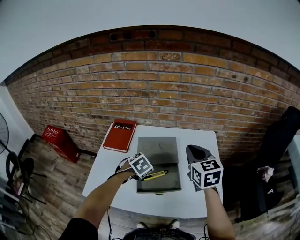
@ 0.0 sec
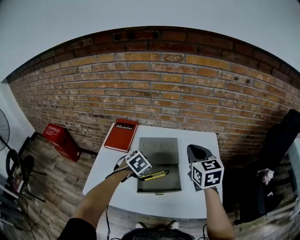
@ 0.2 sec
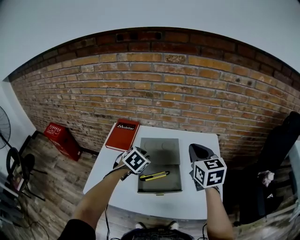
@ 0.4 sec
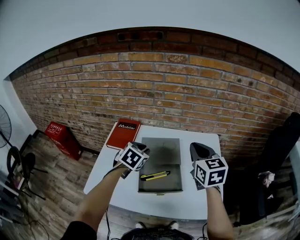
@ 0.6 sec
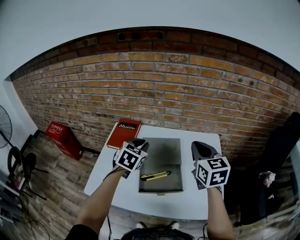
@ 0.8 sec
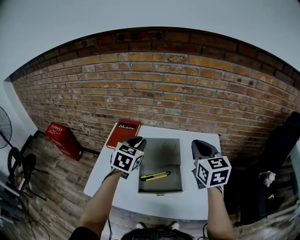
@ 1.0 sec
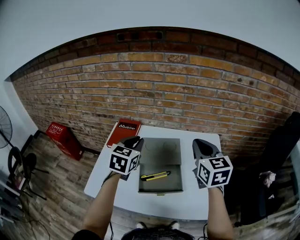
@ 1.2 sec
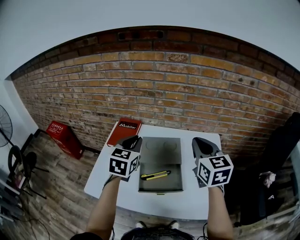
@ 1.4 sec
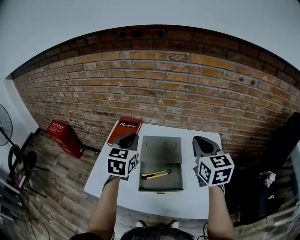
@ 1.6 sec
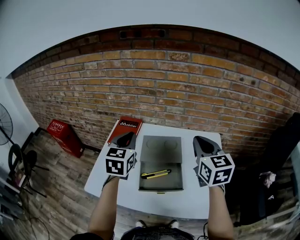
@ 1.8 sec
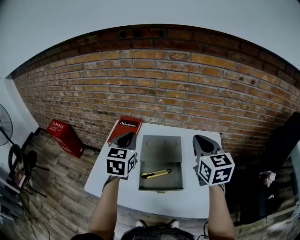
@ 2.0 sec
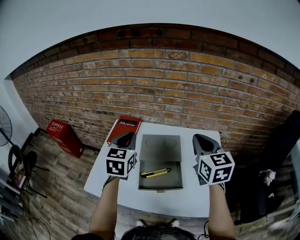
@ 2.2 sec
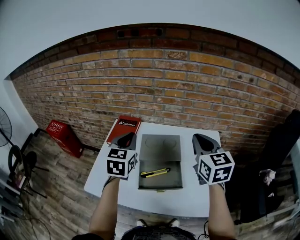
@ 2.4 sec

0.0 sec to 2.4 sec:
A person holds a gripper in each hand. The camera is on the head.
0.0 sec to 1.2 sec: The left gripper heads upward, covering about 20 cm, and tilts its fingers approximately 40 degrees upward.
1.2 sec to 2.4 sec: The grippers make only small movements.

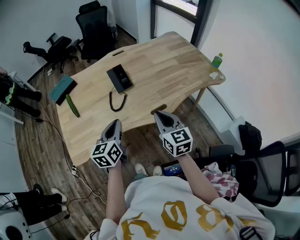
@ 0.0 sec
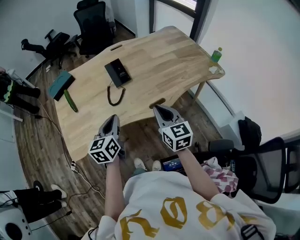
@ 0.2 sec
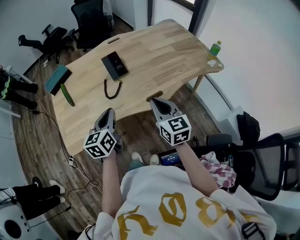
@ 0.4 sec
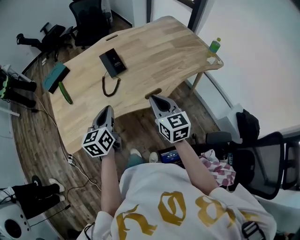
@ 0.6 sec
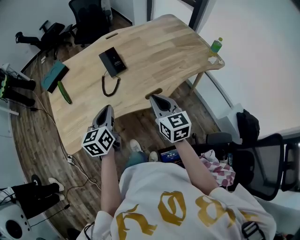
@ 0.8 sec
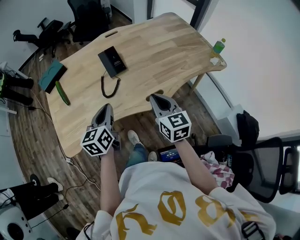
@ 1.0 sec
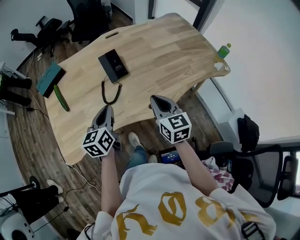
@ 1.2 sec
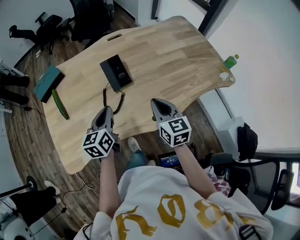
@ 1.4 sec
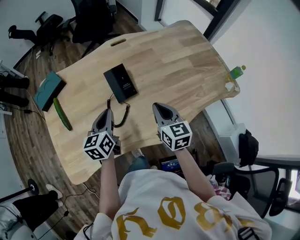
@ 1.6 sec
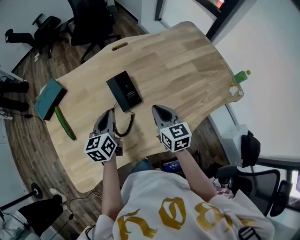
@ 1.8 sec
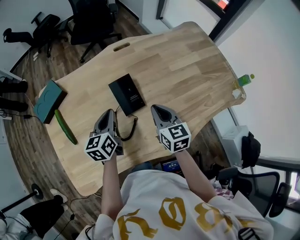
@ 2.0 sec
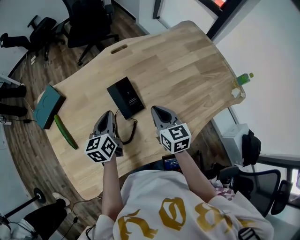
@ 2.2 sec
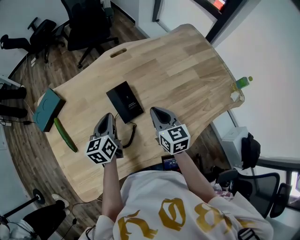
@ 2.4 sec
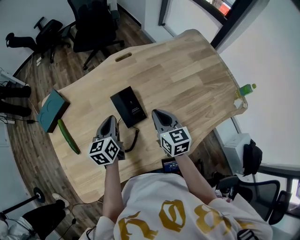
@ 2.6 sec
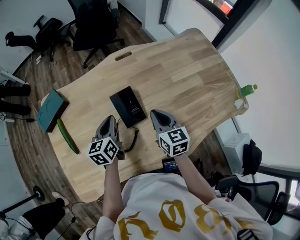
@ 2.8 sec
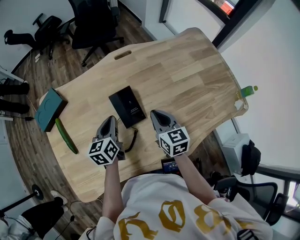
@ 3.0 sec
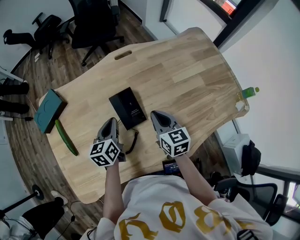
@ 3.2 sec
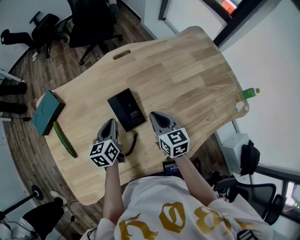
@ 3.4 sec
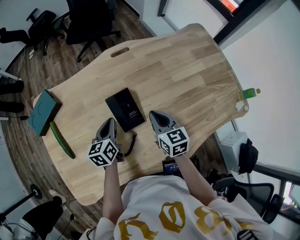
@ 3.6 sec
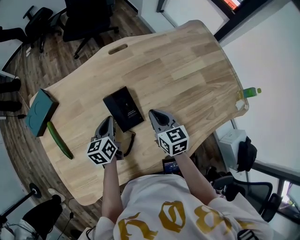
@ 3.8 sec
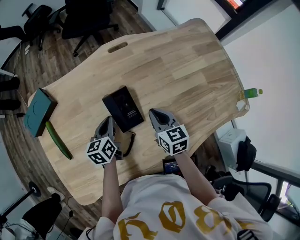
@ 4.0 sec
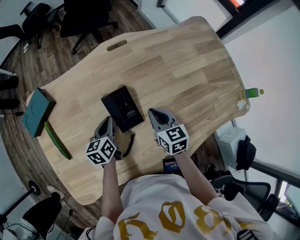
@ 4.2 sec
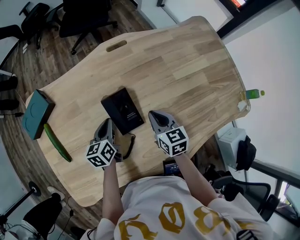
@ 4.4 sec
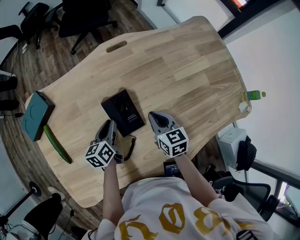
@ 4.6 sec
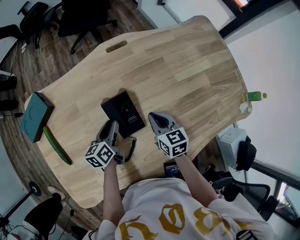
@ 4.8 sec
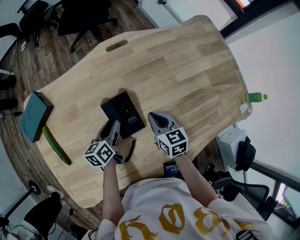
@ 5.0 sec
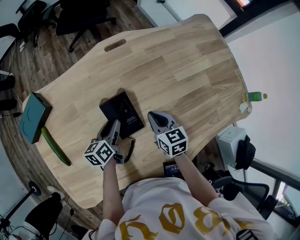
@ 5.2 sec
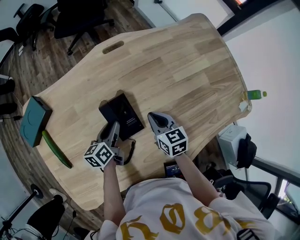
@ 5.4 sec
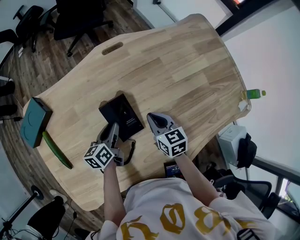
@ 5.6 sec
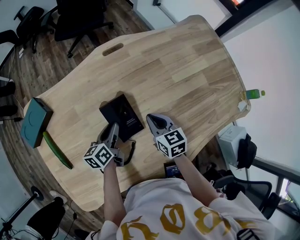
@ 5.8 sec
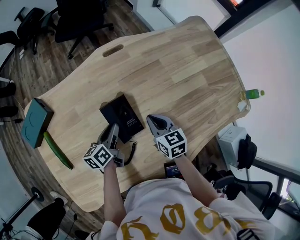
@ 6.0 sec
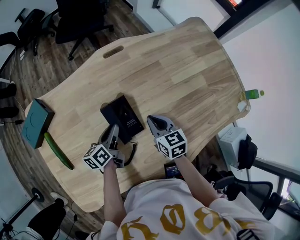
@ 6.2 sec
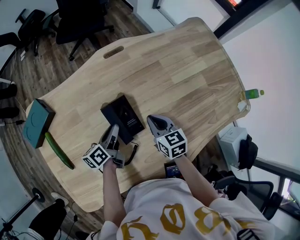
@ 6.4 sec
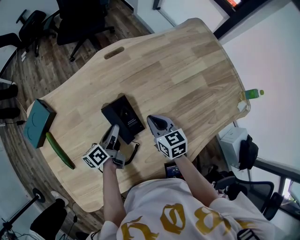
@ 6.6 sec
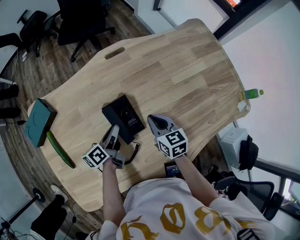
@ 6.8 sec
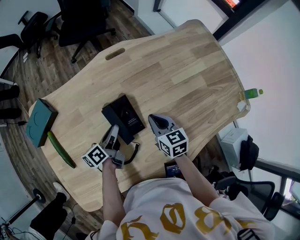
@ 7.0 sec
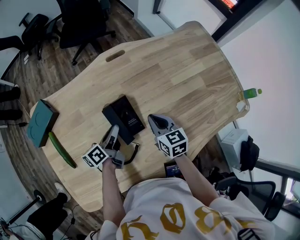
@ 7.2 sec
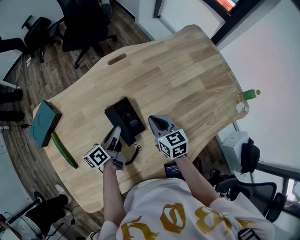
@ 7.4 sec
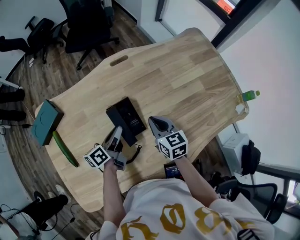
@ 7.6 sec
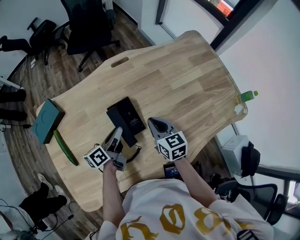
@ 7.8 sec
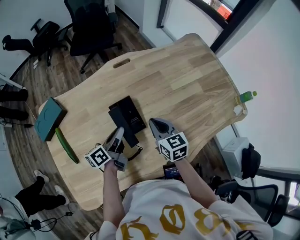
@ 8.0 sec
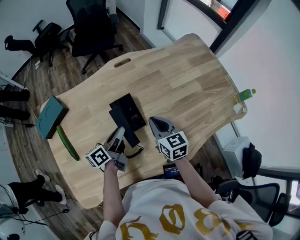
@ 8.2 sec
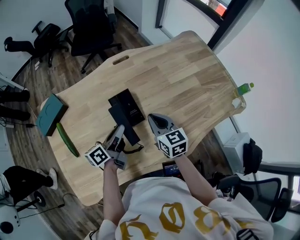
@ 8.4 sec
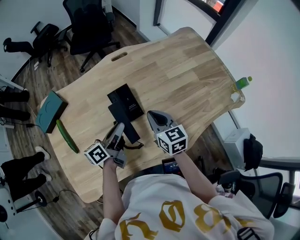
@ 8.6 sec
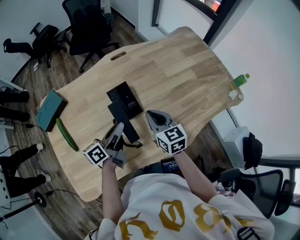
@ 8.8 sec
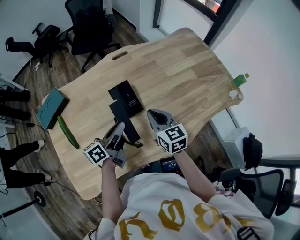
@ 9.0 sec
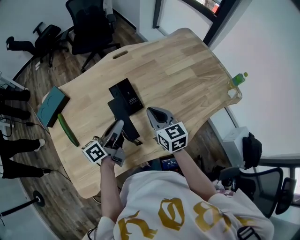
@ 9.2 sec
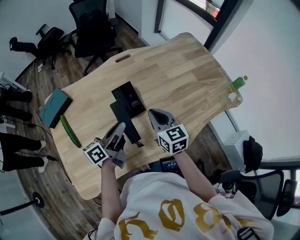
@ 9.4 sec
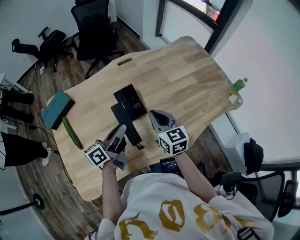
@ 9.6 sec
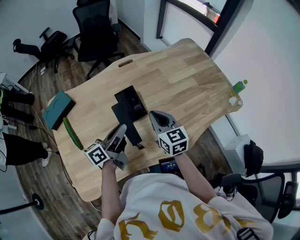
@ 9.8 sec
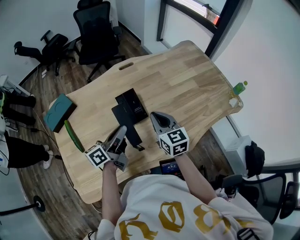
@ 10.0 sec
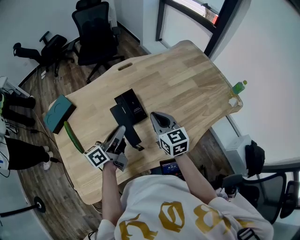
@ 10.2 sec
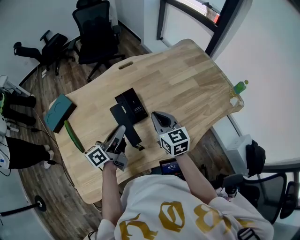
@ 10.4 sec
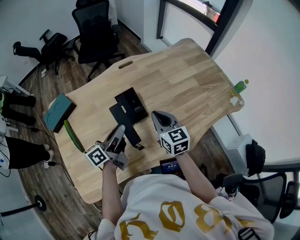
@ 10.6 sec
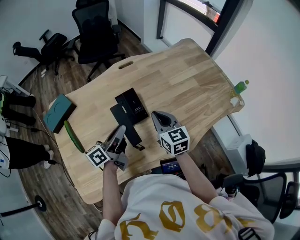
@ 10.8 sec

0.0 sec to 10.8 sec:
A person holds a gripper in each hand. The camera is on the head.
0.0 sec to 1.6 sec: The grippers both shift forward by some 20 cm.
1.6 sec to 3.0 sec: The grippers both shift forward by approximately 10 cm.
3.0 sec to 4.6 sec: Both grippers travel together downward, approximately 10 cm.
4.6 sec to 6.2 sec: The grippers move only a little.
6.2 sec to 7.8 sec: Both grippers move upward, approximately 5 cm.
7.8 sec to 9.2 sec: Both grippers travel together backward and upward, roughly 10 cm.
9.2 sec to 10.8 sec: The grippers make only small movements.

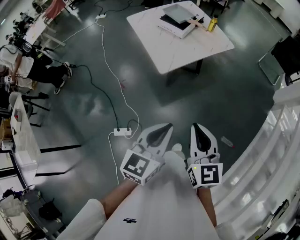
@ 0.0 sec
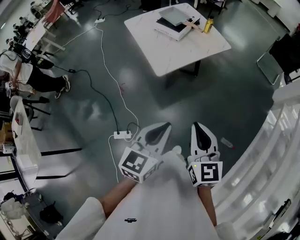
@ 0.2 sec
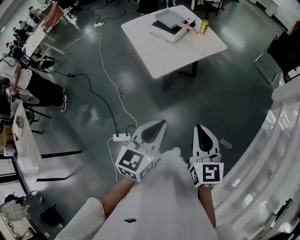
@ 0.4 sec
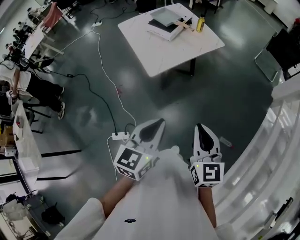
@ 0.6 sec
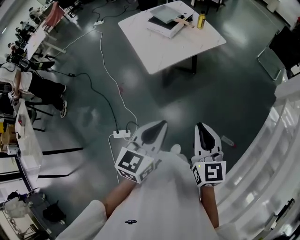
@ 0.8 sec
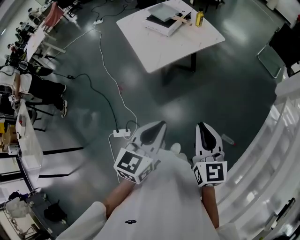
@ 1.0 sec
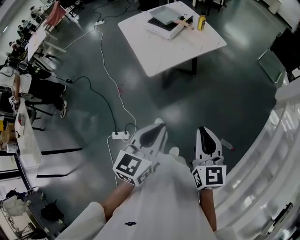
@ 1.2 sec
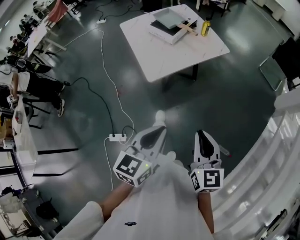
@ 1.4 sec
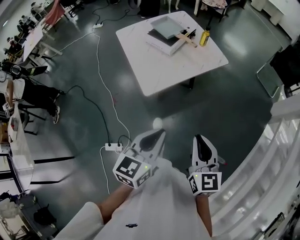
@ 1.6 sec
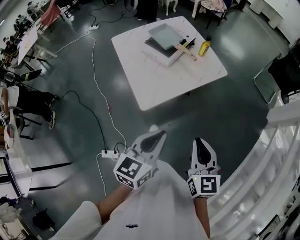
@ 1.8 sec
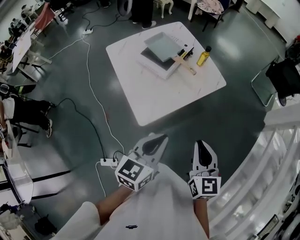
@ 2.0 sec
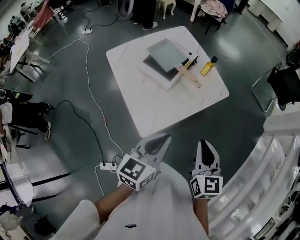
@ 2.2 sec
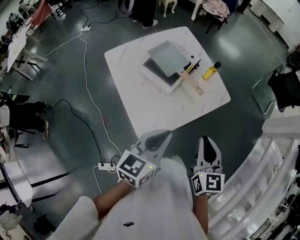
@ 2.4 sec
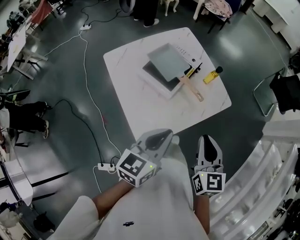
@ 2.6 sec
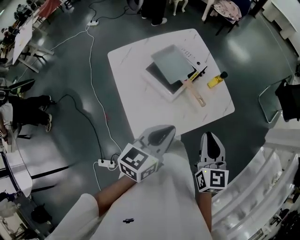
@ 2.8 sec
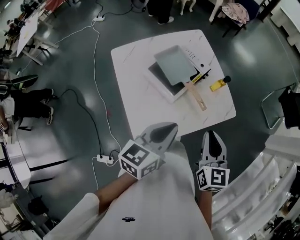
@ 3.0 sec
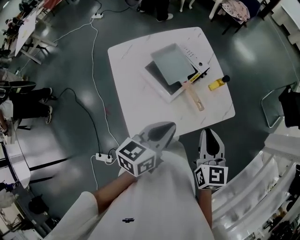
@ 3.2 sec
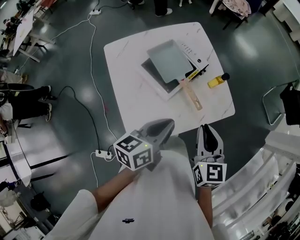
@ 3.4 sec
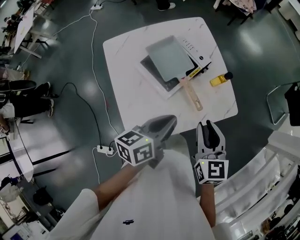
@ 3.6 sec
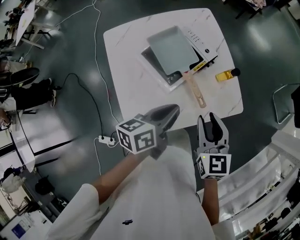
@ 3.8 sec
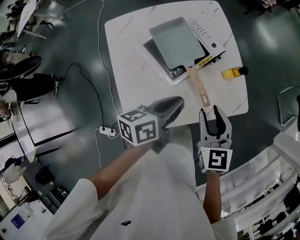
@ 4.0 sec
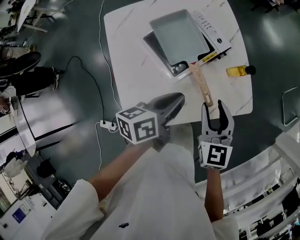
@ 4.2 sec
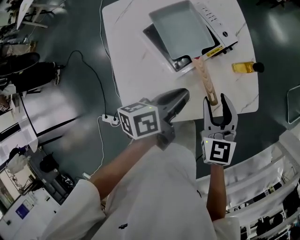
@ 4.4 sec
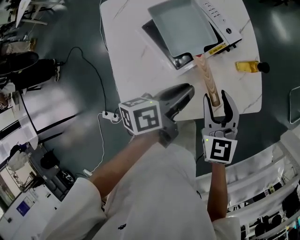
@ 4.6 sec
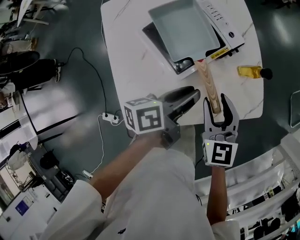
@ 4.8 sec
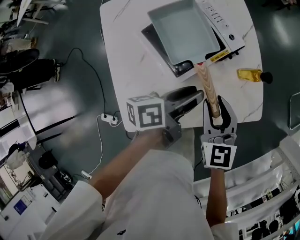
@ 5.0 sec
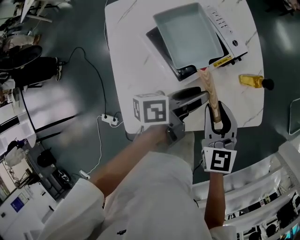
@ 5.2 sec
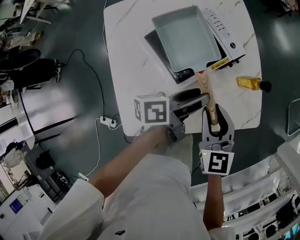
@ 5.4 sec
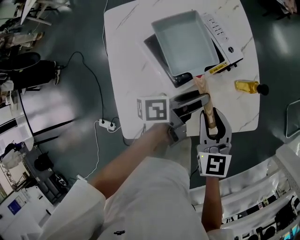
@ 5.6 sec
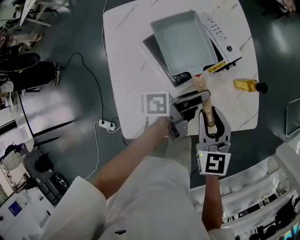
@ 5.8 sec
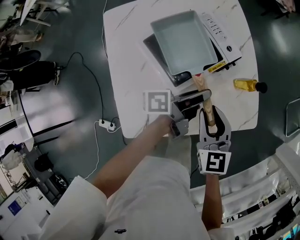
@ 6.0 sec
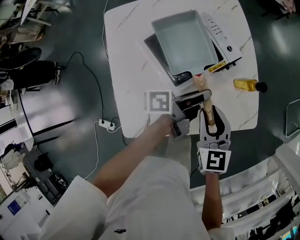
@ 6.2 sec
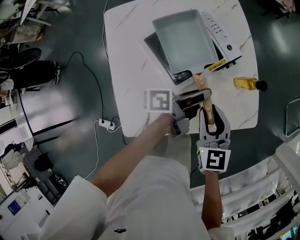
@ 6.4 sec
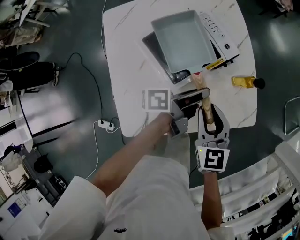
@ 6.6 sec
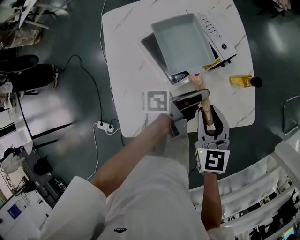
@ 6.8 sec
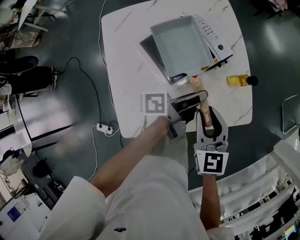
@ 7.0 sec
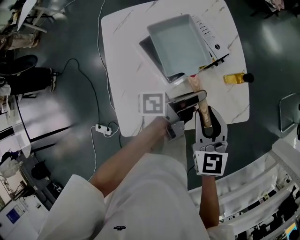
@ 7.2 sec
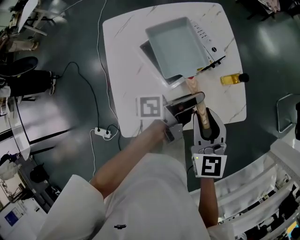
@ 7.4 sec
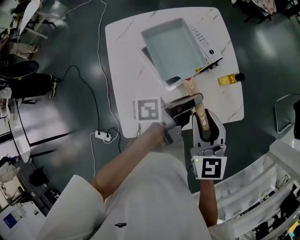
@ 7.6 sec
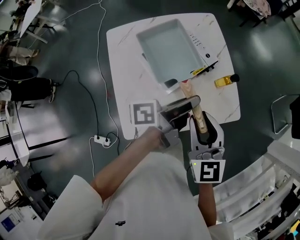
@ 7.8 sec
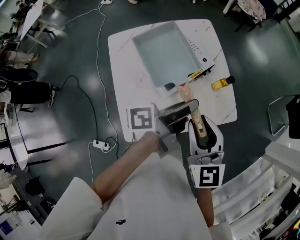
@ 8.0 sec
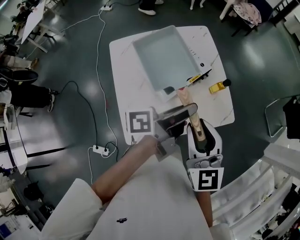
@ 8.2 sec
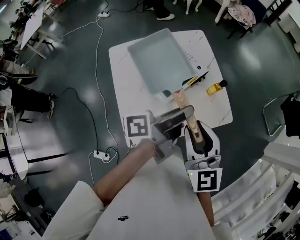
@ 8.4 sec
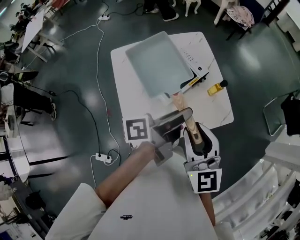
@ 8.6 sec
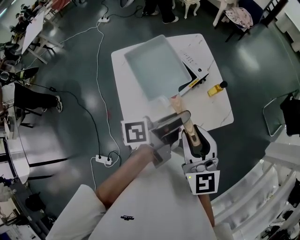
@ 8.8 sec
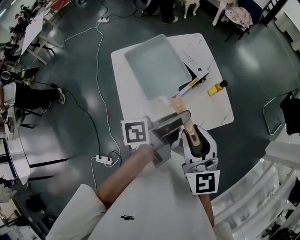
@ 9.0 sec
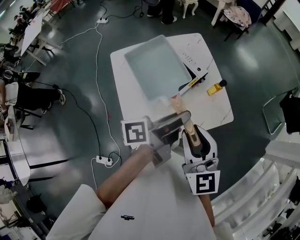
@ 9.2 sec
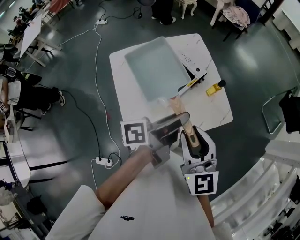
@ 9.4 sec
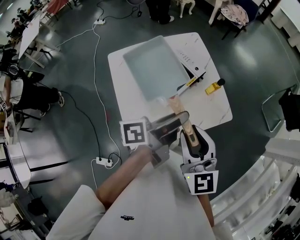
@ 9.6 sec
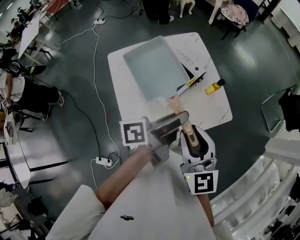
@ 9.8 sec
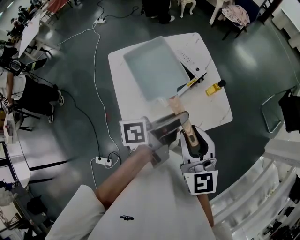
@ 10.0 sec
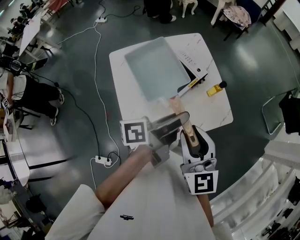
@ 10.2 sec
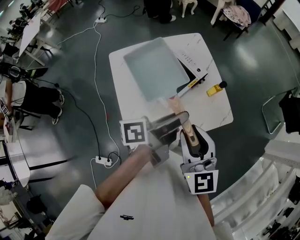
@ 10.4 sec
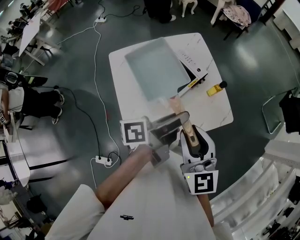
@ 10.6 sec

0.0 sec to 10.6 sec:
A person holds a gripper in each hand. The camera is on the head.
0.0 sec to 1.6 sec: Both grippers move forward and to the right, some 15 cm.
1.6 sec to 3.0 sec: The two grippers travel together, forward, about 40 cm.
3.0 sec to 4.6 sec: Both grippers travel together downward and forward, roughly 20 cm. The right gripper rotates roughly 20 degrees, and opens its fingers. Meanwhile the left gripper rotates around the line of its fingers by approximately 40 degrees, counterclockwise from behind.
4.6 sec to 6.0 sec: The left gripper moves forward, roughly 5 cm, turns by some 30 degrees, and opens, then closes again.
6.0 sec to 7.6 sec: Both grippers travel together upward, about 10 cm.
7.6 sec to 9.0 sec: The grippers both shift upward and backward by some 15 cm.
9.0 sec to 10.6 sec: The two grippers keep their place.
